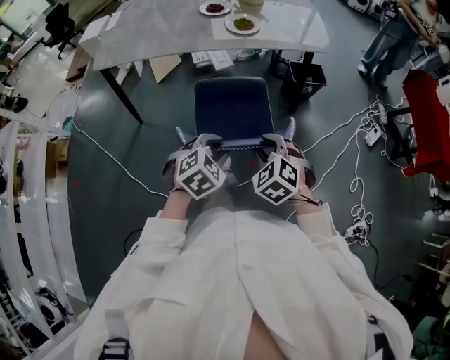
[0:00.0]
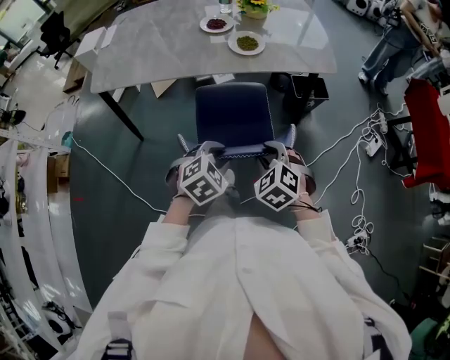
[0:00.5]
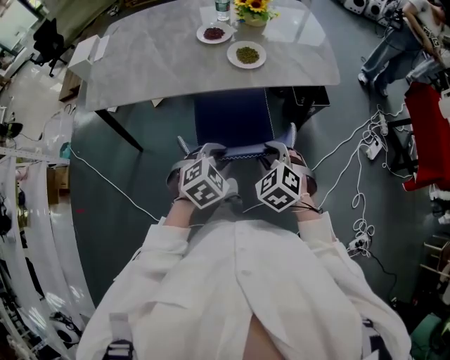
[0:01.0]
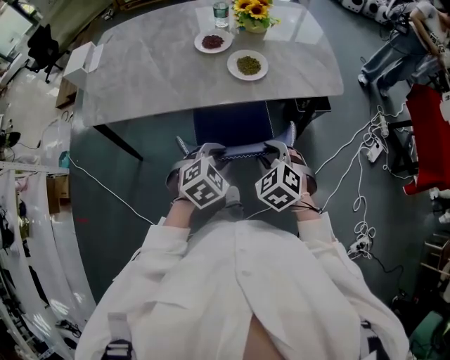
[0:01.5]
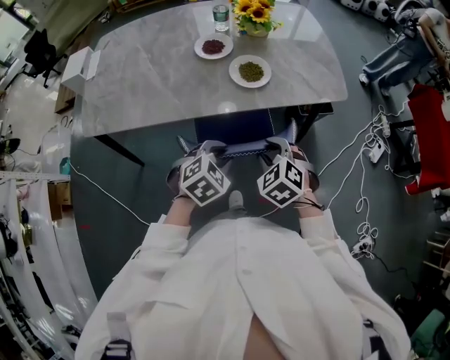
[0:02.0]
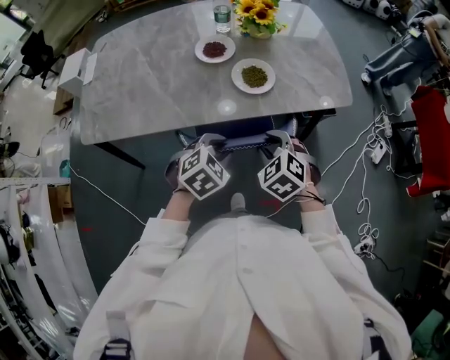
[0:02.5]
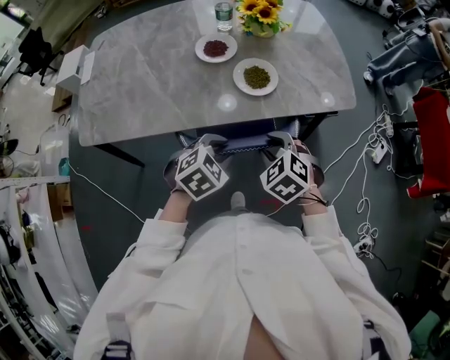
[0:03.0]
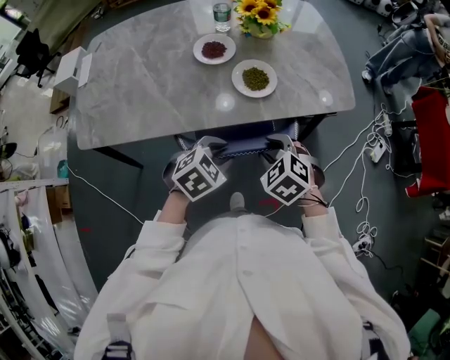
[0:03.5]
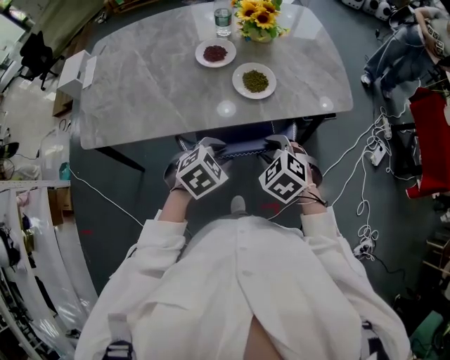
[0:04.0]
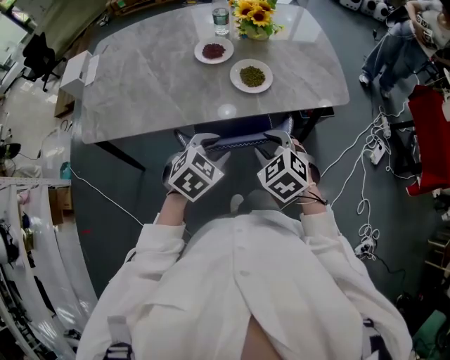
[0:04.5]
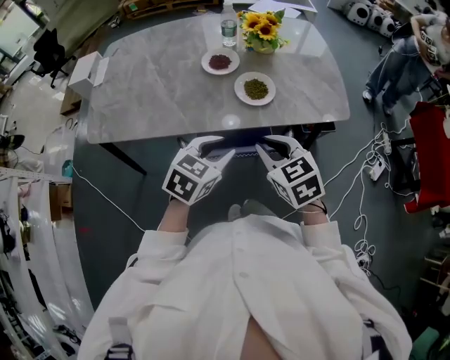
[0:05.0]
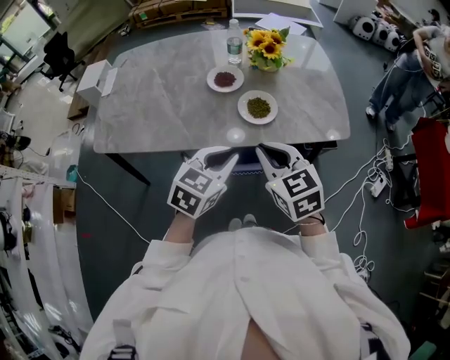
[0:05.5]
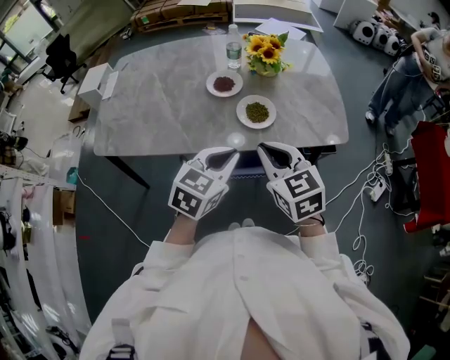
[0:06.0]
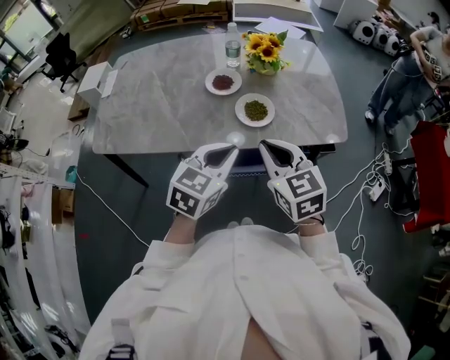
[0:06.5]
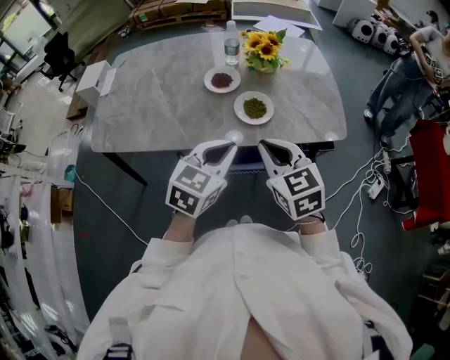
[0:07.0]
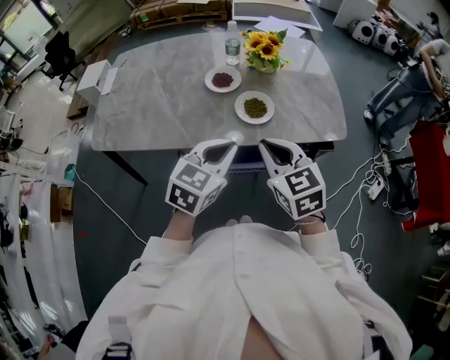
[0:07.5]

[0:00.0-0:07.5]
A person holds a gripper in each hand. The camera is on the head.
0:00.0 to 0:02.0: Both grippers travel together forward, roughly 25 cm.
0:02.0 to 0:04.0: The right gripper shifts by approximately 5 cm. The left gripper ends up approximately 5 cm from where it was.
0:04.0 to 0:05.5: Both grippers move upward, roughly 15 cm. The right gripper angles its fingers upward, by roughly 30 degrees, and closes; the left gripper swivels approximately 40 degrees, and closes up.
0:05.5 to 0:07.5: The grippers stay close to where they were, moving slightly.

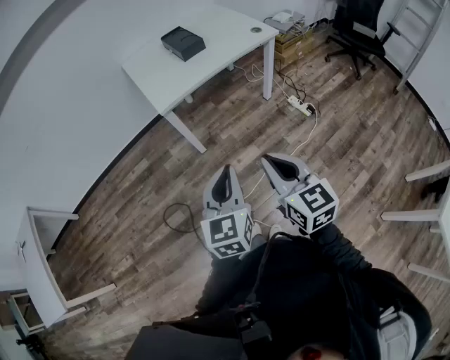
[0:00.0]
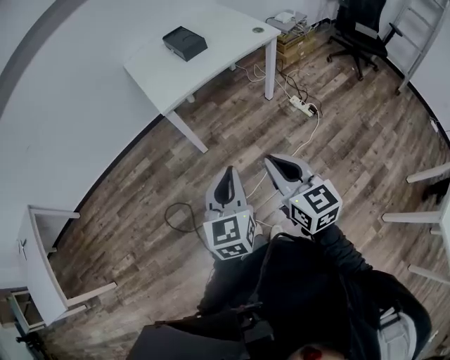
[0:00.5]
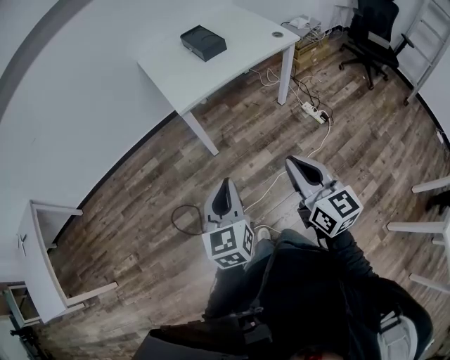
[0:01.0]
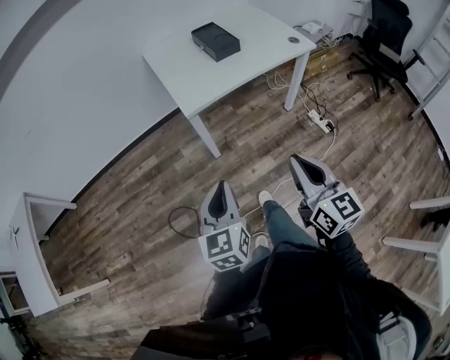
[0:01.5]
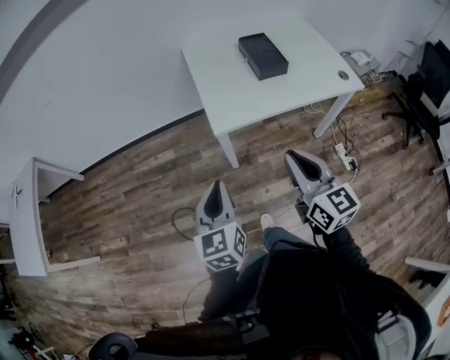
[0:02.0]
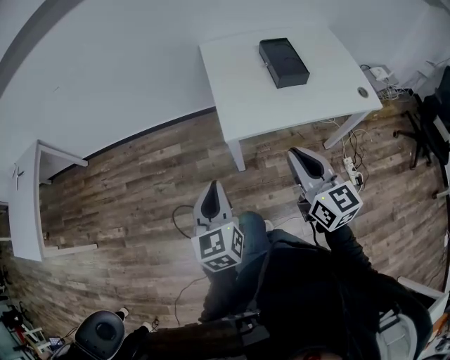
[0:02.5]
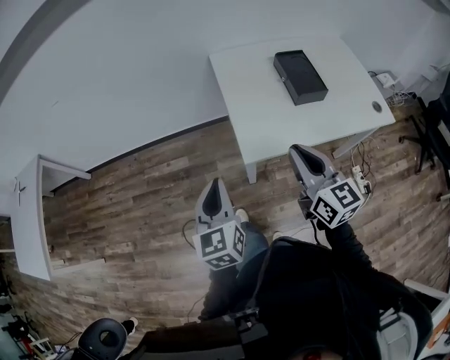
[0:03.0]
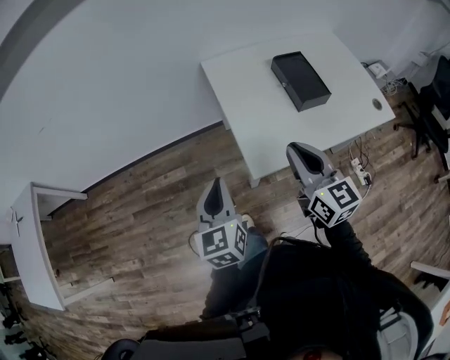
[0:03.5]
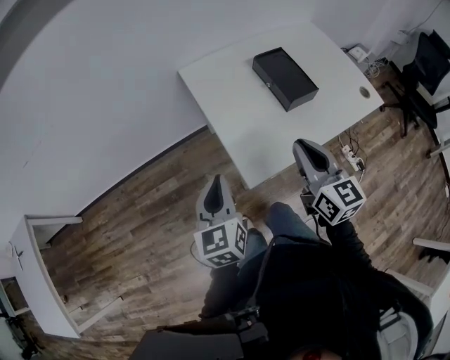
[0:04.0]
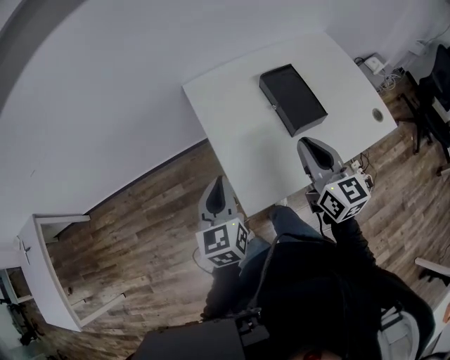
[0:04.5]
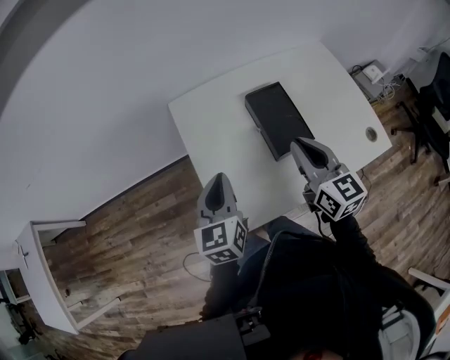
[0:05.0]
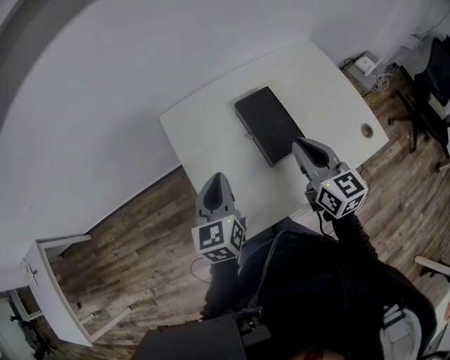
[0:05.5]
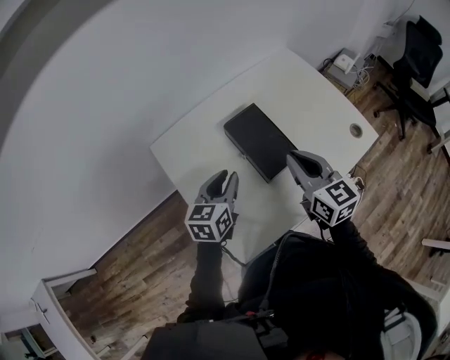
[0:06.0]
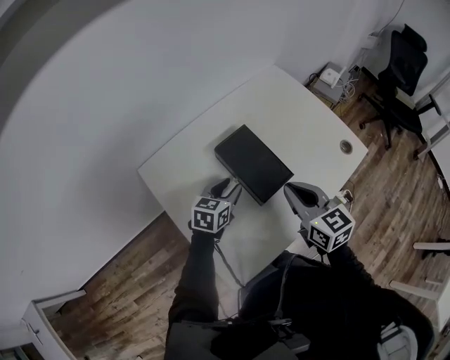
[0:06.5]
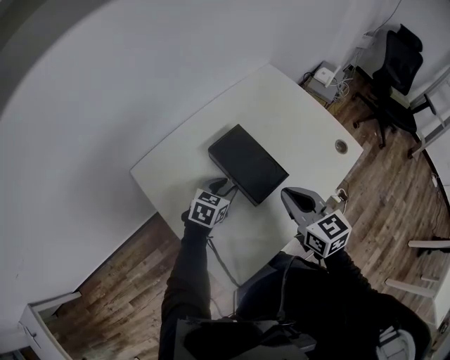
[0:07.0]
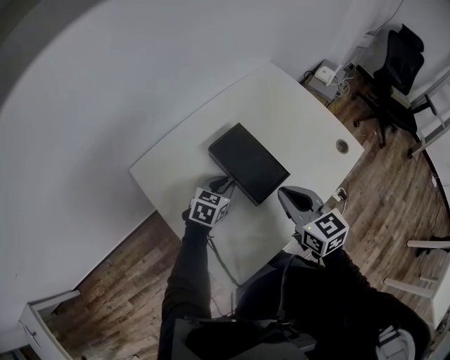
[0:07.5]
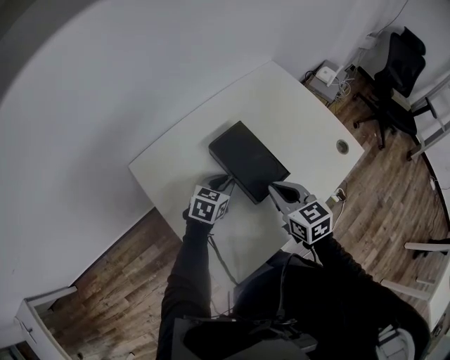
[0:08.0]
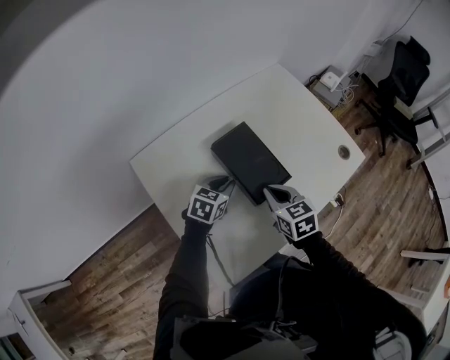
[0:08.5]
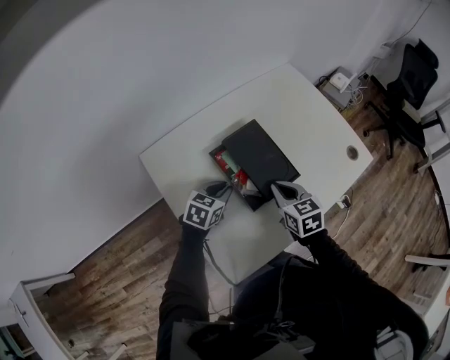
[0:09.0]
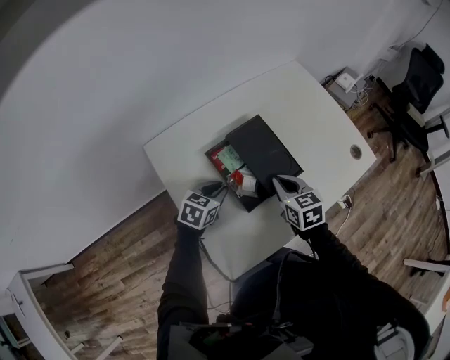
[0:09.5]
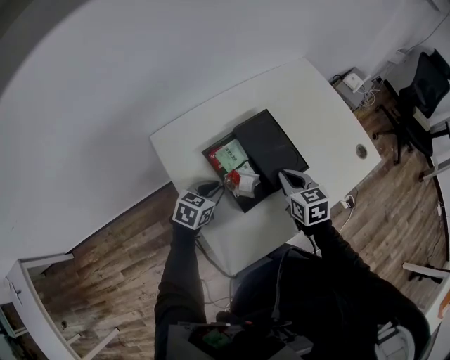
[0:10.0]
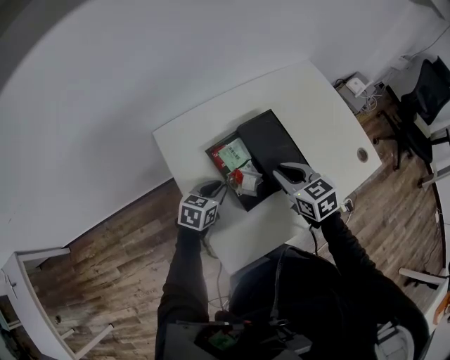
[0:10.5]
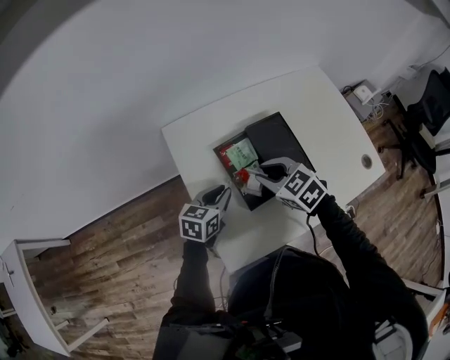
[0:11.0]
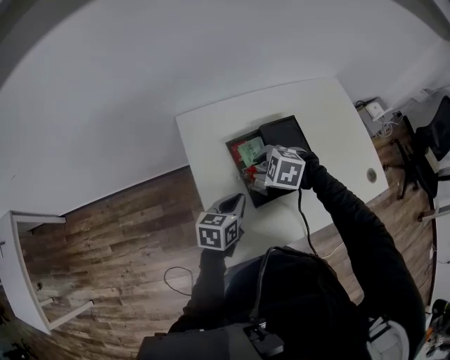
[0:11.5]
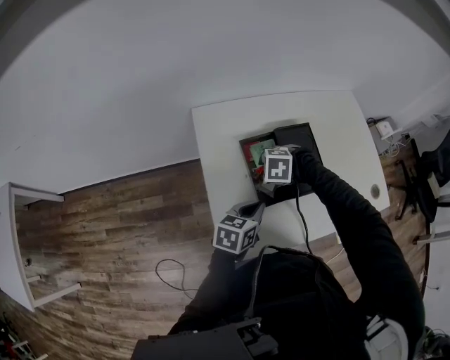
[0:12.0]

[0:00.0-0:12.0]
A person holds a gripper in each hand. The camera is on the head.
0:00.0 to 0:02.0: The right gripper goes approximately 30 cm forward. The left gripper is displaced forward and to the left by about 30 cm, and turns by some 30 degrees.
0:02.0 to 0:04.0: Both grippers move forward, some 30 cm.
0:04.0 to 0:06.0: Both grippers travel together forward and to the right, roughly 30 cm. The left gripper swivels about 30 degrees, and opens.
0:06.0 to 0:08.0: The left gripper moves downward and forward, about 15 cm, and swivels some 30 degrees. Meanwhile the right gripper shifts approximately 10 cm downward.
0:08.0 to 0:10.0: The right gripper is displaced downward by roughly 5 cm. The left gripper is displaced to the left and backward by approximately 10 cm.
0:10.0 to 0:12.0: The left gripper ends up roughly 10 cm from where it was, and swivels some 30 degrees. Meanwhile the right gripper changes place by about 15 cm, tips its fingers downward by about 40 degrees, and opens up.

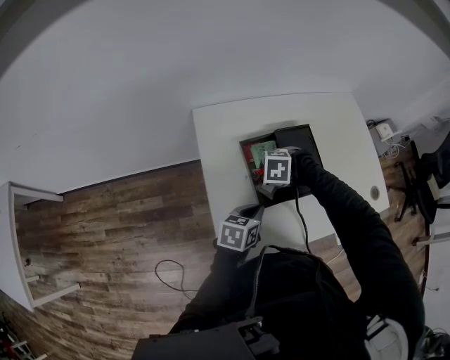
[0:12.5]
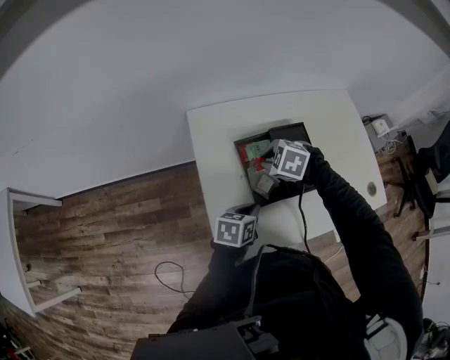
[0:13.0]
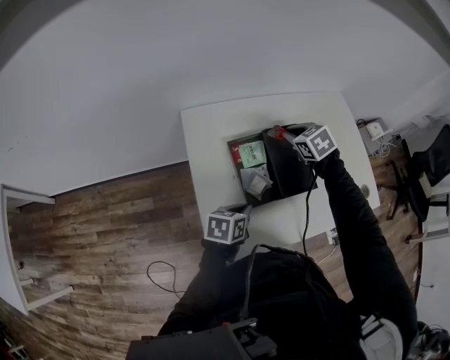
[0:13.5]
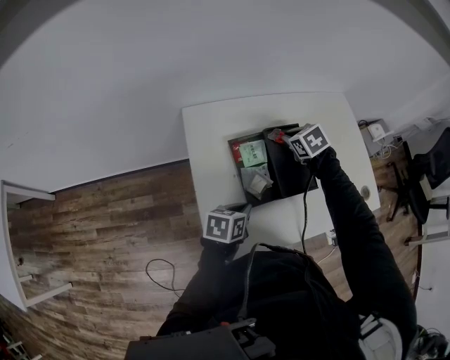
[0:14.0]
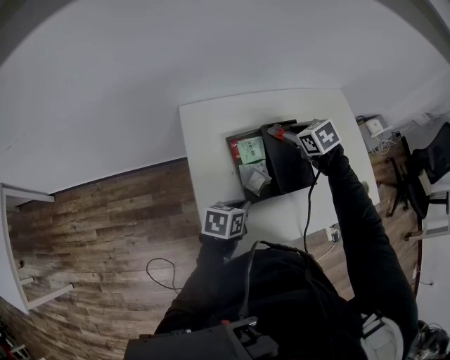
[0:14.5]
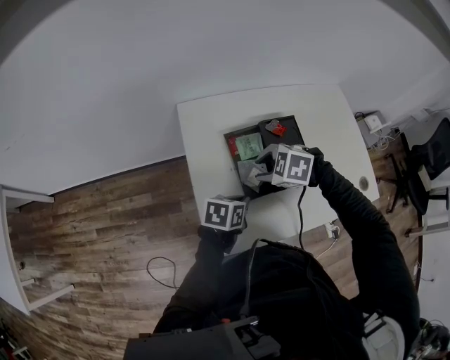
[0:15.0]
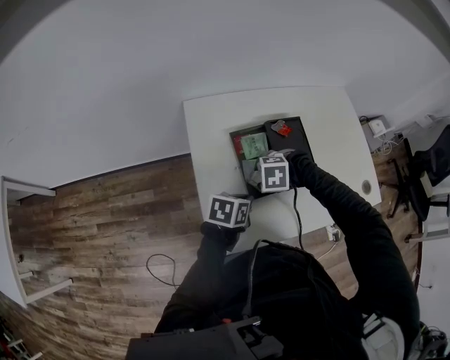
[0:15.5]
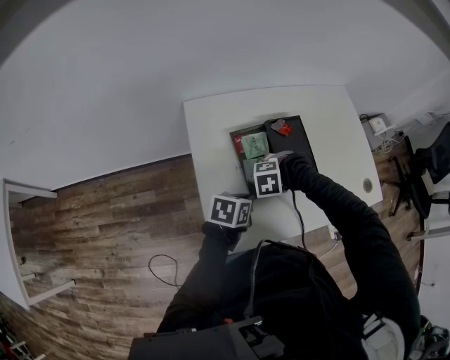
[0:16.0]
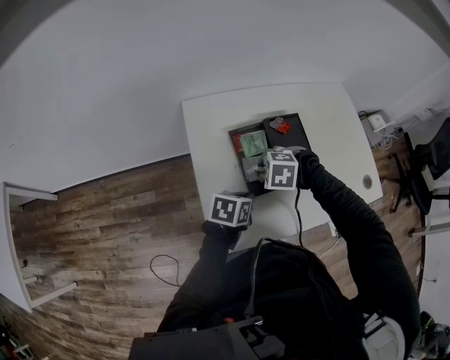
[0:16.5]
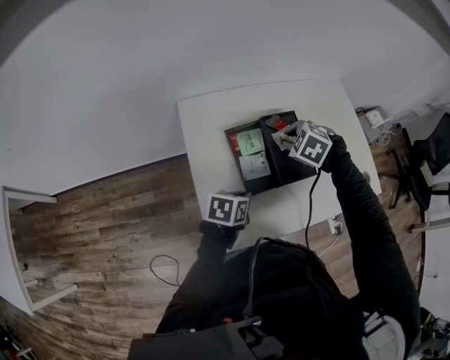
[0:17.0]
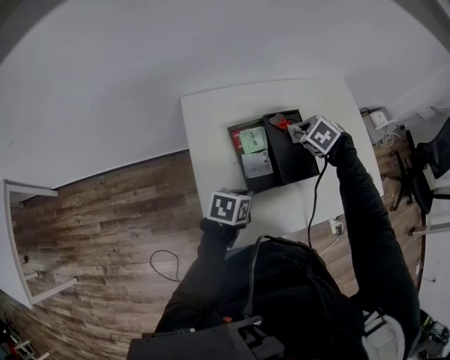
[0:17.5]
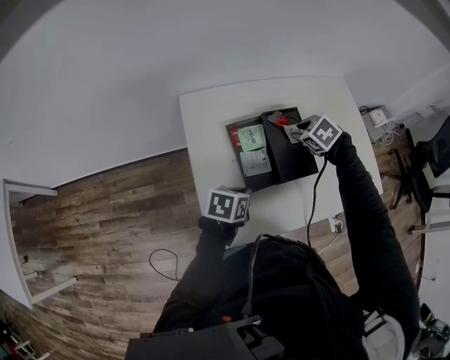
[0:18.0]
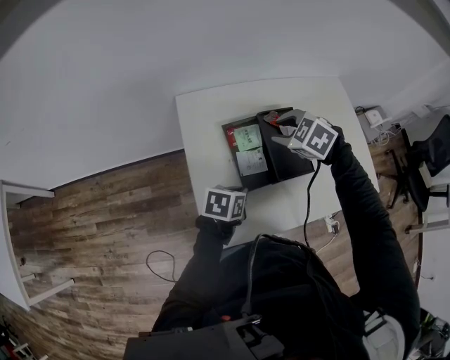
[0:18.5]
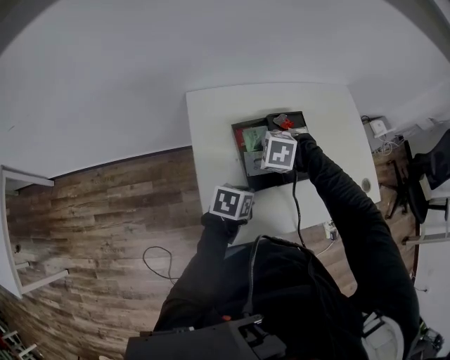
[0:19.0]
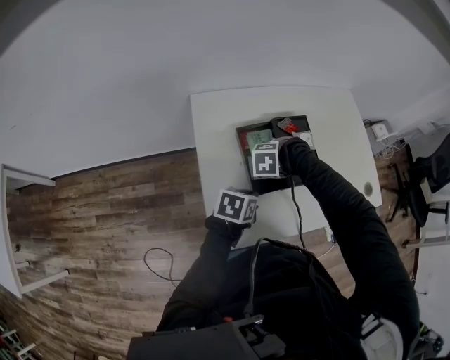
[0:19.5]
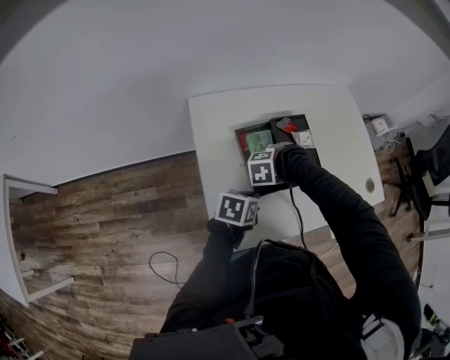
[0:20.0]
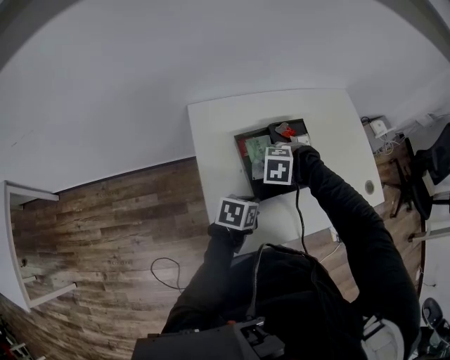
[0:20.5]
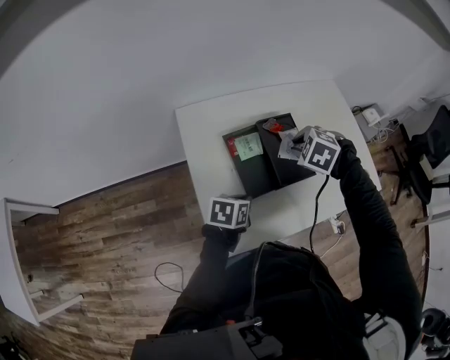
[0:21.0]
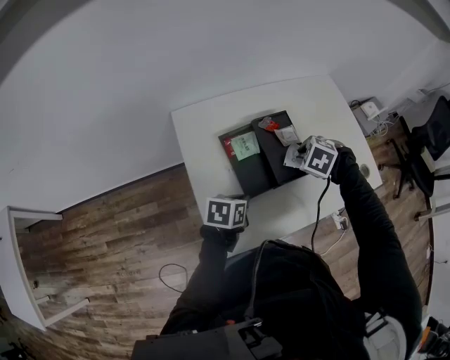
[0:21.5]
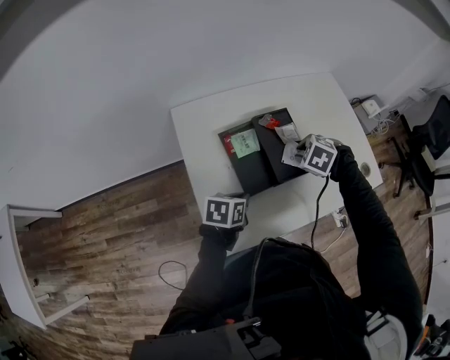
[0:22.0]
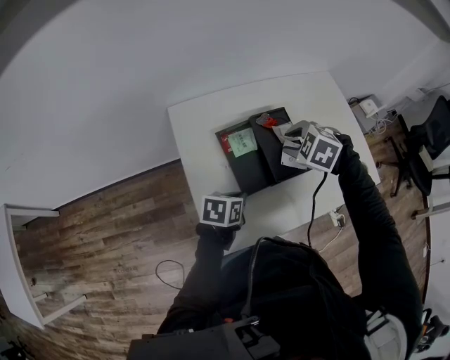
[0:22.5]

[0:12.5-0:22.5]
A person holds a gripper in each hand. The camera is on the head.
0:12.5 to 0:14.5: The right gripper changes place by some 20 cm, and twists approximately 40 degrees clockwise, seen from behind.
0:14.5 to 0:16.5: The right gripper shifts by roughly 20 cm, and rolls counterclockwise, seen from behind, by about 50 degrees.
0:16.5 to 0:18.5: The right gripper ends up about 15 cm from where it was, and rotates approximately 20 degrees.
0:18.5 to 0:20.5: The right gripper shifts some 10 cm downward, and changes its angle by approximately 30 degrees.
0:20.5 to 0:22.5: The right gripper moves up and down over some 10 cm, changing direction 2 times, and changes its angle by about 20 degrees.
